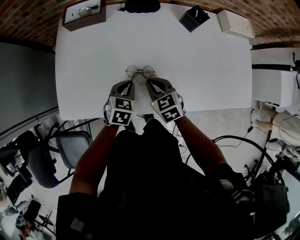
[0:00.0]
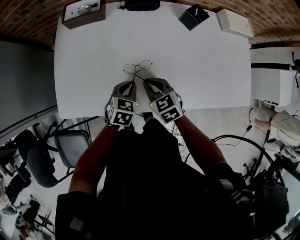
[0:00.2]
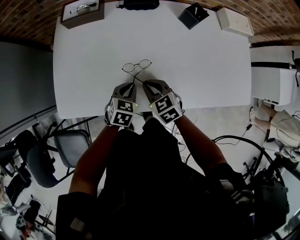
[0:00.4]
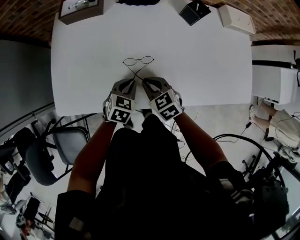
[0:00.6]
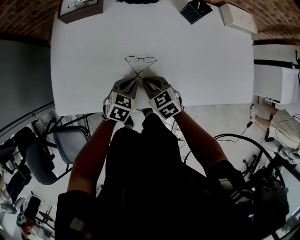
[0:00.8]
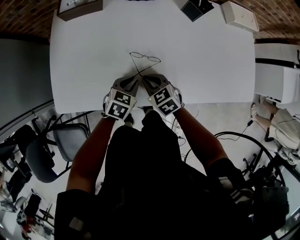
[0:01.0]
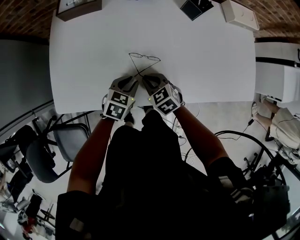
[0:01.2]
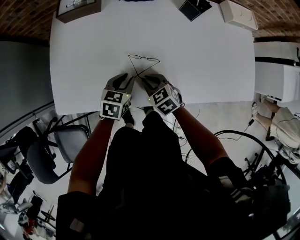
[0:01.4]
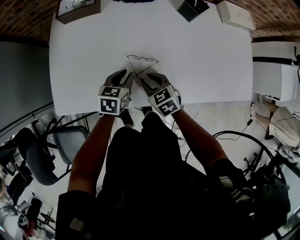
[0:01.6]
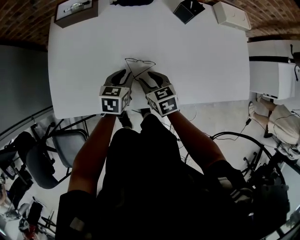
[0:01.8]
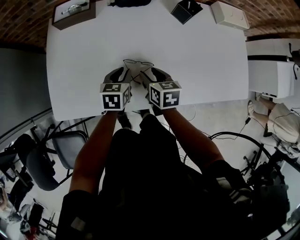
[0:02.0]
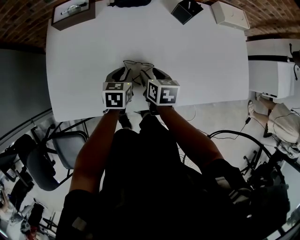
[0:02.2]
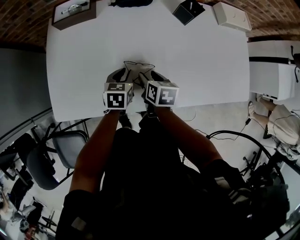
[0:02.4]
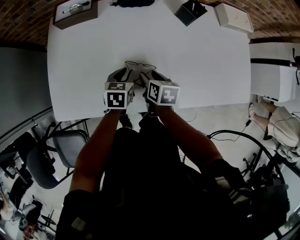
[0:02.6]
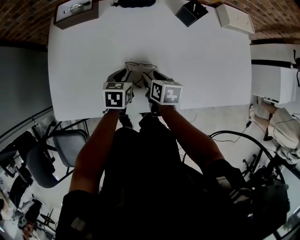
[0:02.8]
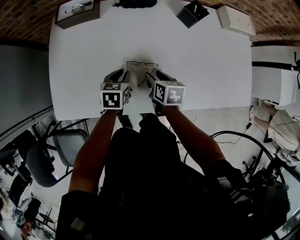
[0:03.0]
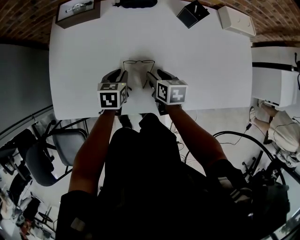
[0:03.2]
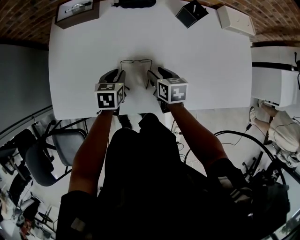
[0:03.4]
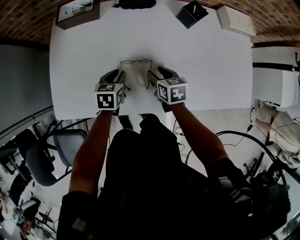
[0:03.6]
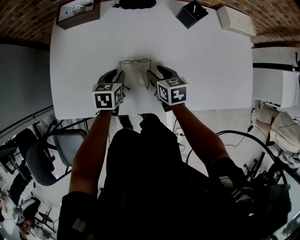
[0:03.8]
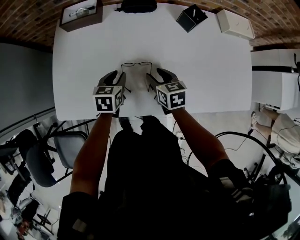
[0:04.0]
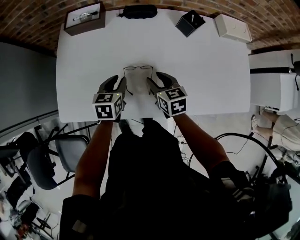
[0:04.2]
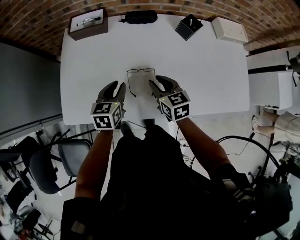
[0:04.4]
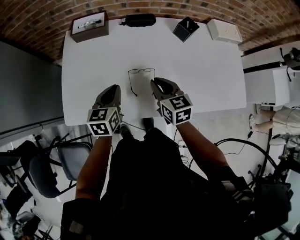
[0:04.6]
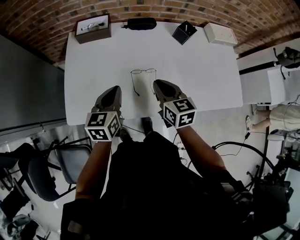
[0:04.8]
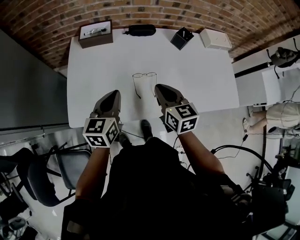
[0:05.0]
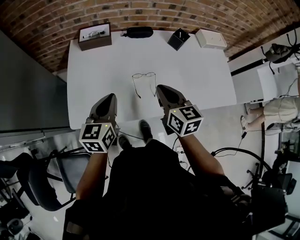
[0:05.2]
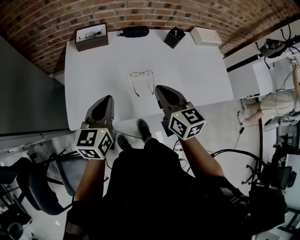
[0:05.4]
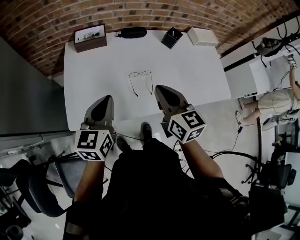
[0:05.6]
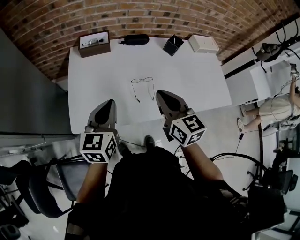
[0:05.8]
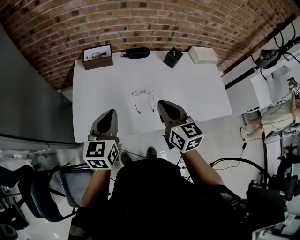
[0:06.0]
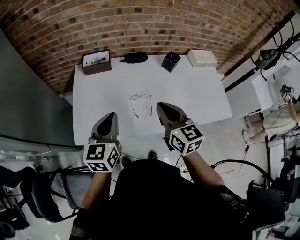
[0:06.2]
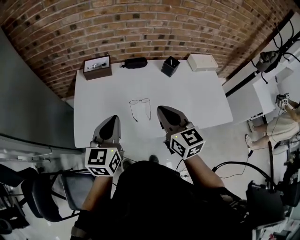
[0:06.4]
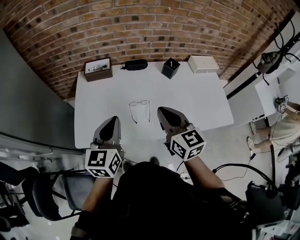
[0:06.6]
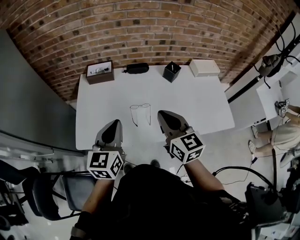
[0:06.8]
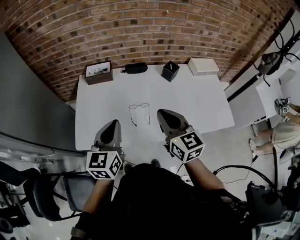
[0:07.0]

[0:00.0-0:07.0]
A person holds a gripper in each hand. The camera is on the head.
0:00.0 to 0:01.4: The right gripper is displaced downward by roughly 5 cm.
0:01.4 to 0:02.8: The grippers both shift forward by approximately 5 cm. The right gripper rolls clockwise, seen from behind, by about 50 degrees, and opens up.
0:02.8 to 0:04.2: The right gripper heads upward, covering approximately 5 cm, and swivels some 30 degrees; the left gripper ends up some 5 cm from where it was.
0:04.2 to 0:05.6: The right gripper goes roughly 25 cm upward and backward, rotates some 20 degrees, and closes up. Meanwhile the left gripper shifts roughly 30 cm upward, backward and to the left, changes its angle by about 30 degrees, and closes its fingers.
0:05.6 to 0:07.0: The grippers both shift to the right and upward by about 10 cm.

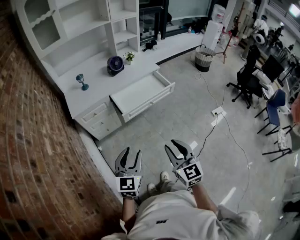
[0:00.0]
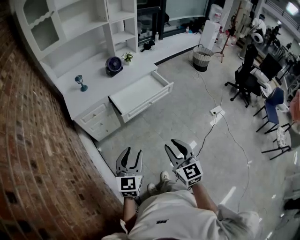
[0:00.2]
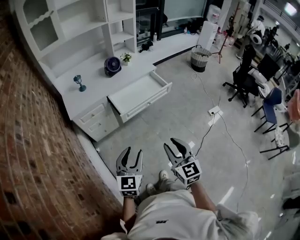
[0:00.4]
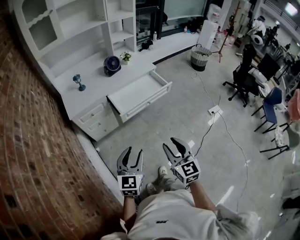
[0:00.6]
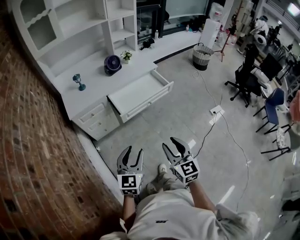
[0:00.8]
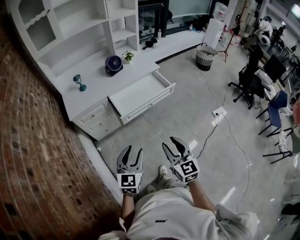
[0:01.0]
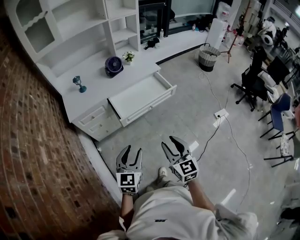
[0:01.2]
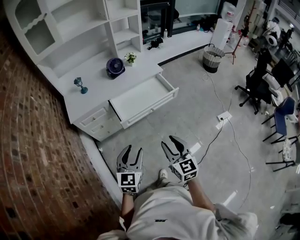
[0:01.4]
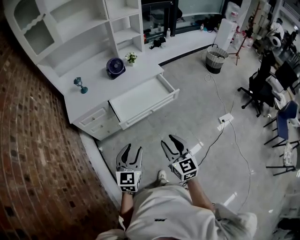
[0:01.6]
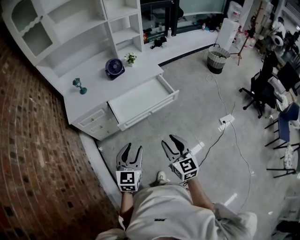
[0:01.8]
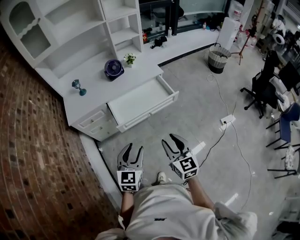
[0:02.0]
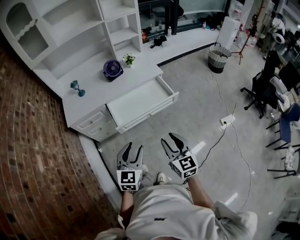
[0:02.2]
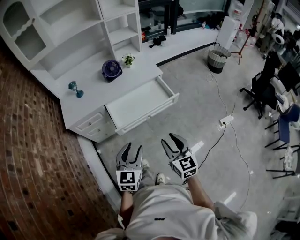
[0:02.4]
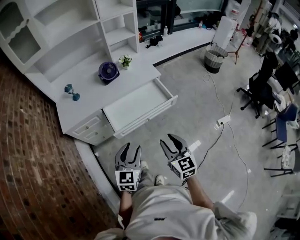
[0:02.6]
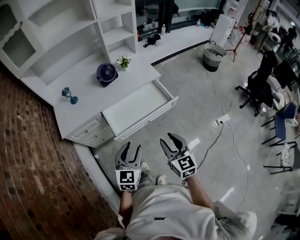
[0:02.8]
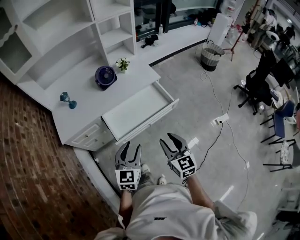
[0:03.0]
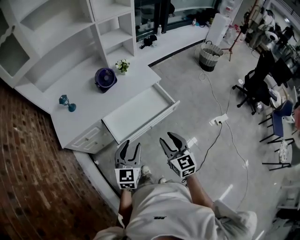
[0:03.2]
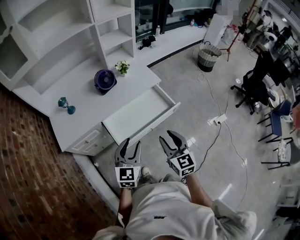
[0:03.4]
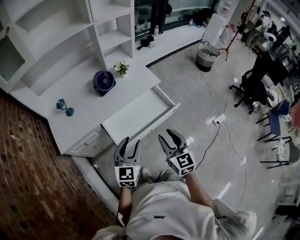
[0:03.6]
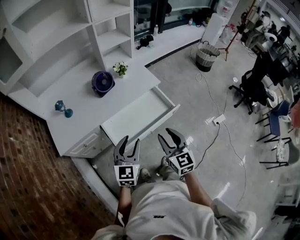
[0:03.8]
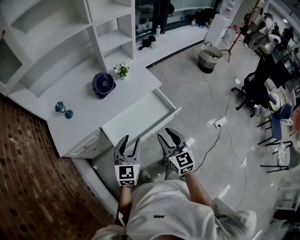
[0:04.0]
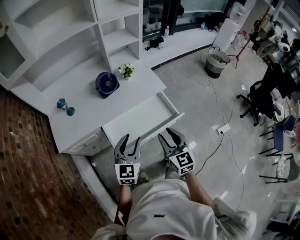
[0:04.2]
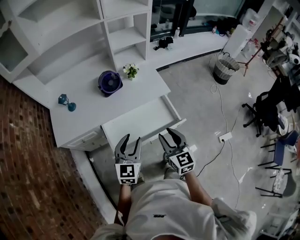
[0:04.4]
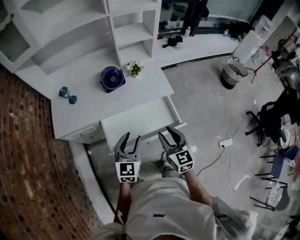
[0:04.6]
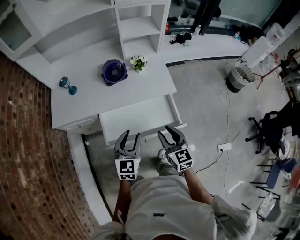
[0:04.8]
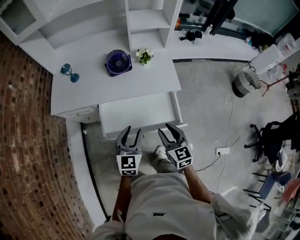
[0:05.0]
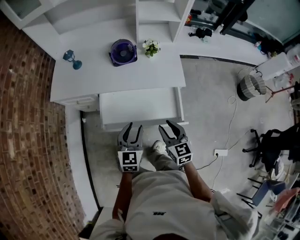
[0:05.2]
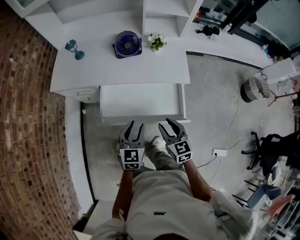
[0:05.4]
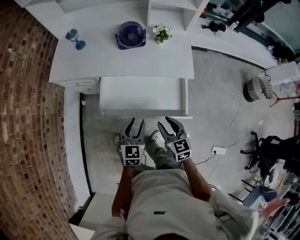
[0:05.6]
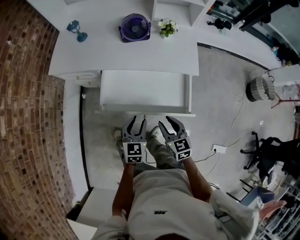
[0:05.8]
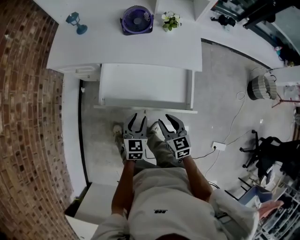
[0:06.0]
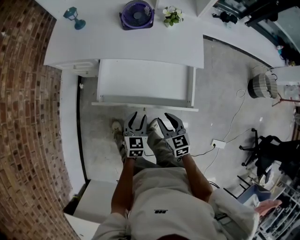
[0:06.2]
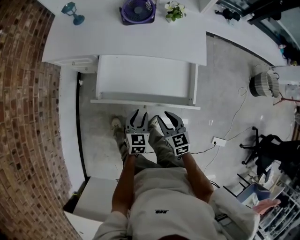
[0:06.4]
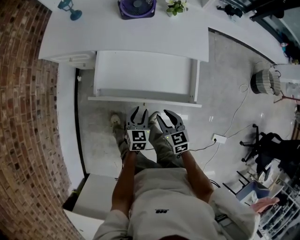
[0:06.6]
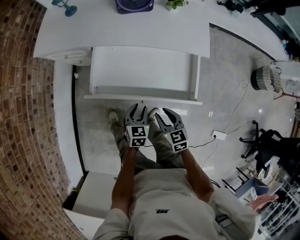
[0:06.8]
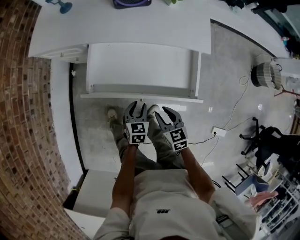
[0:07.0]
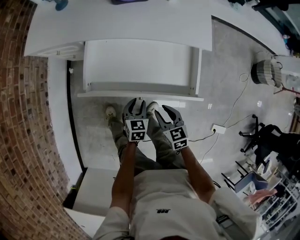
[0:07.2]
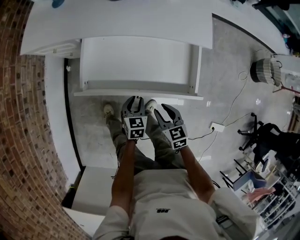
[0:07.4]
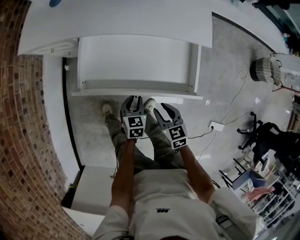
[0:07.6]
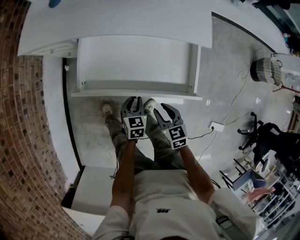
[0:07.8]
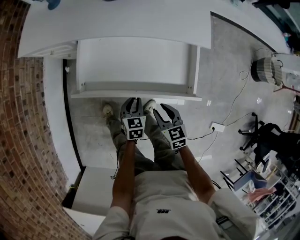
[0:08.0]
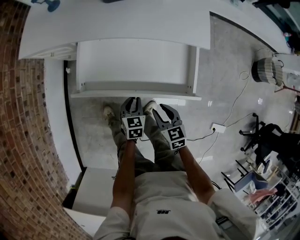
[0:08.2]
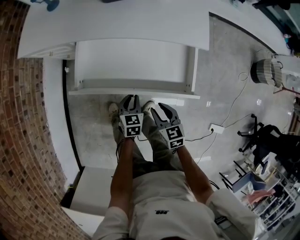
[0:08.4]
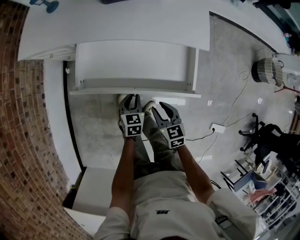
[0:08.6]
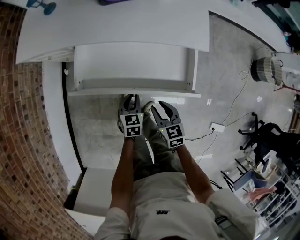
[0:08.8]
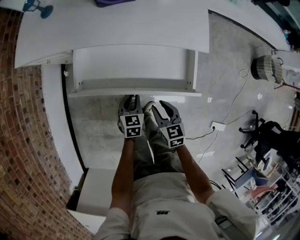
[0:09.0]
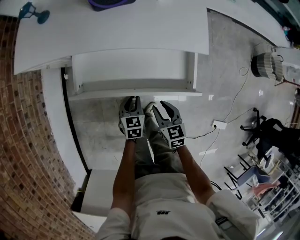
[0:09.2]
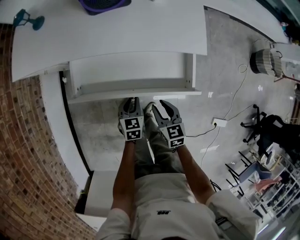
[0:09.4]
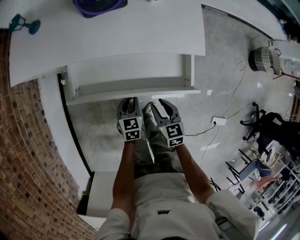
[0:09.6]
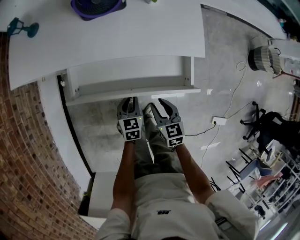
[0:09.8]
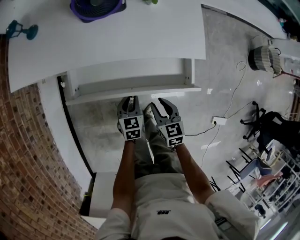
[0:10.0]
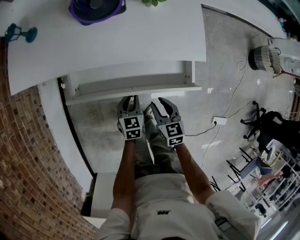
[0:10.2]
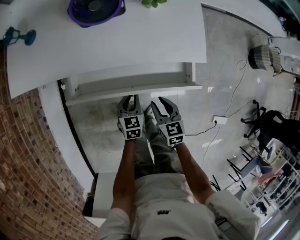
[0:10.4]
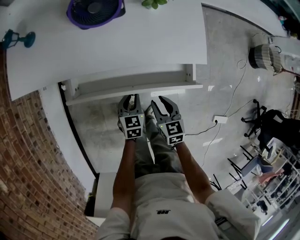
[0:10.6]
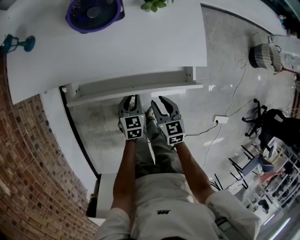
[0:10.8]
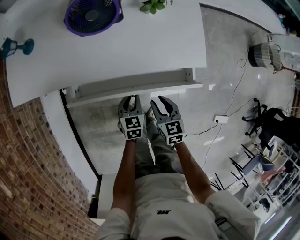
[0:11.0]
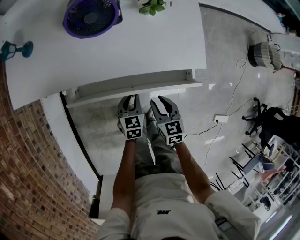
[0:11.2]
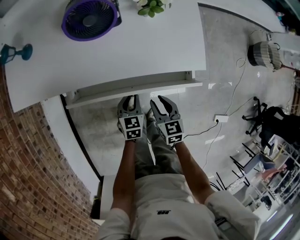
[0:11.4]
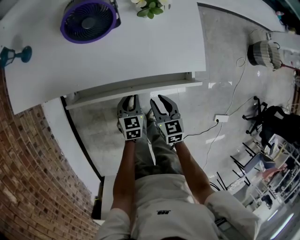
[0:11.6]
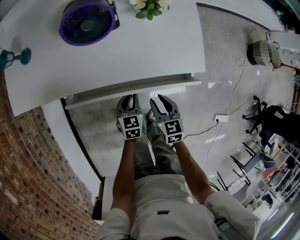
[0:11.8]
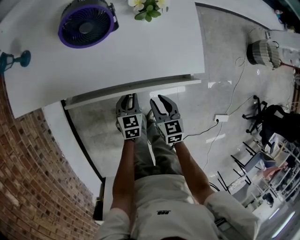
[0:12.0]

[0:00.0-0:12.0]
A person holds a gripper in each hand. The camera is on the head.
0:00.0 to 0:01.6: The two grippers go approximately 15 cm forward and to the right.
0:01.6 to 0:03.0: Both grippers move forward, about 20 cm.
0:03.0 to 0:04.4: The grippers both shift forward by approximately 20 cm.
0:04.4 to 0:06.0: The two grippers go roughly 20 cm downward. The right gripper turns by about 40 degrees; the left gripper changes its angle by roughly 30 degrees.
0:06.0 to 0:07.6: The two grippers go approximately 15 cm downward.
0:07.6 to 0:09.0: Both grippers travel together forward, roughly 5 cm.
0:09.0 to 0:10.4: The grippers both shift forward by approximately 10 cm.
0:10.4 to 0:12.0: Both grippers travel together forward, approximately 5 cm.

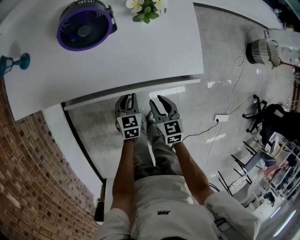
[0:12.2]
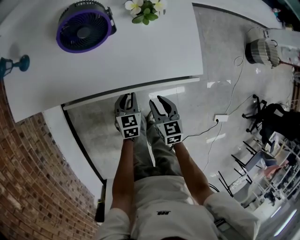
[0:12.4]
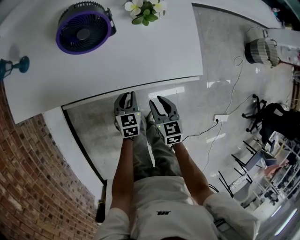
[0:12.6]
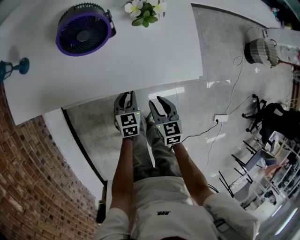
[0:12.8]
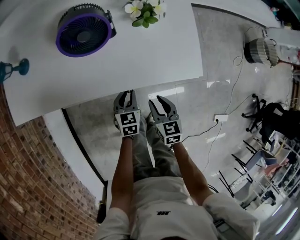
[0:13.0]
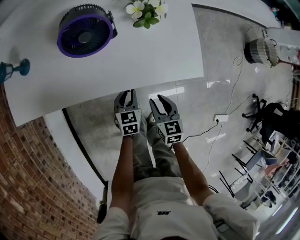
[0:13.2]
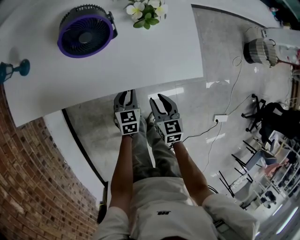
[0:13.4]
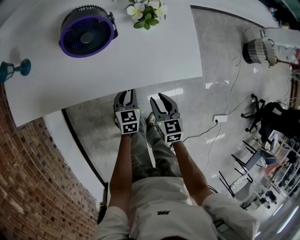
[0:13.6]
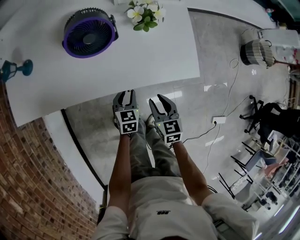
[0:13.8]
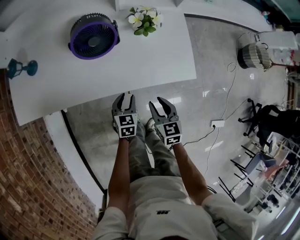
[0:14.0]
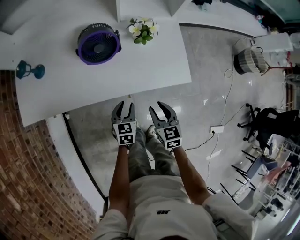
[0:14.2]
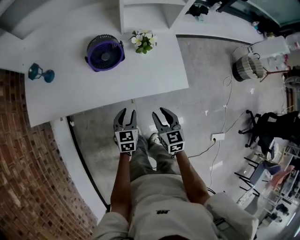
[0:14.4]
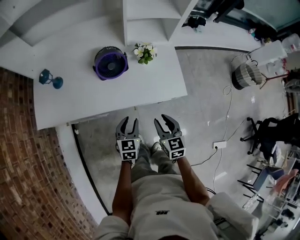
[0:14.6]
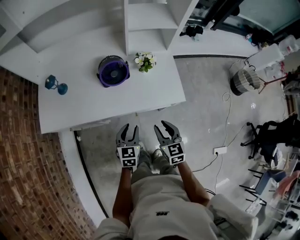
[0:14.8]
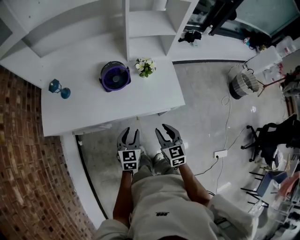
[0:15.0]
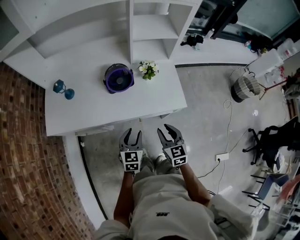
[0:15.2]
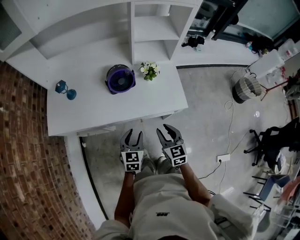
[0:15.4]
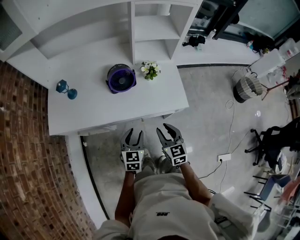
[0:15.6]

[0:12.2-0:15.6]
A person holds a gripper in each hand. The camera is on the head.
0:12.2 to 0:13.8: The grippers move only a little.
0:13.8 to 0:15.6: Both grippers move upward, approximately 20 cm.

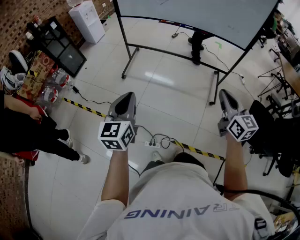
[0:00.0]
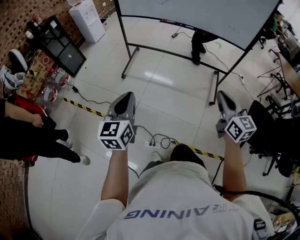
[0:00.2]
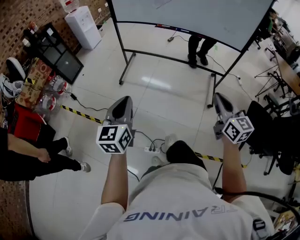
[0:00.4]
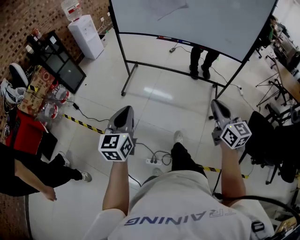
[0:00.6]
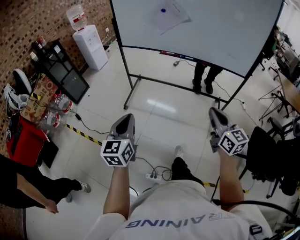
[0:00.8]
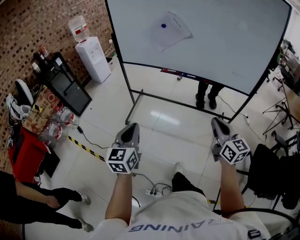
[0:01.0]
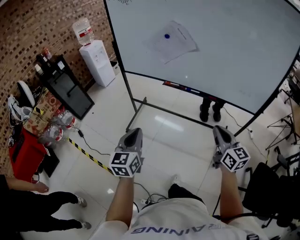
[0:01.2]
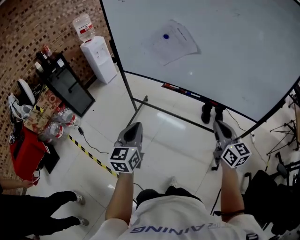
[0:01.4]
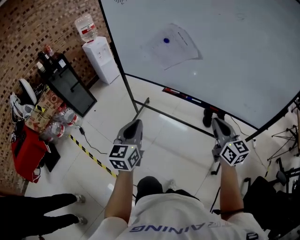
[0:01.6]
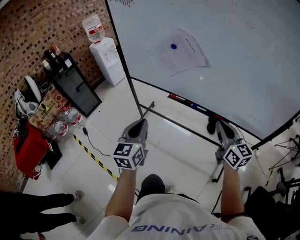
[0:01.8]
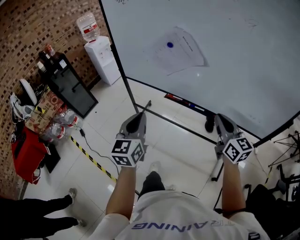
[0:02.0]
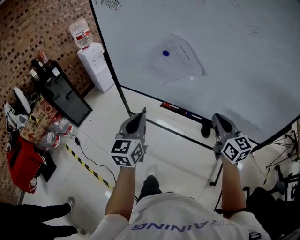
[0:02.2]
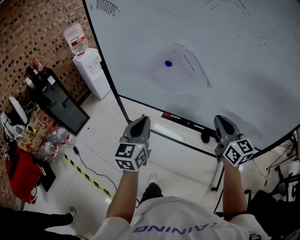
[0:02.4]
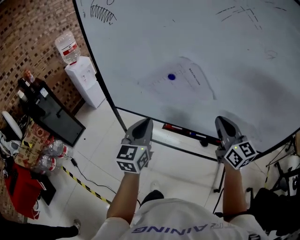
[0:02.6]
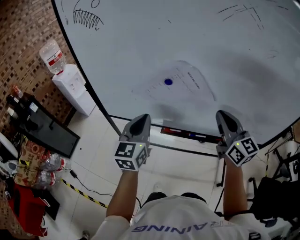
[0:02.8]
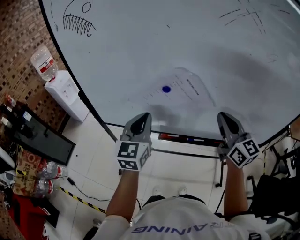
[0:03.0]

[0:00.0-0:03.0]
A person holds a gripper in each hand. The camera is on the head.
0:00.0 to 0:01.6: The two grippers travel together, forward, approximately 40 cm.
0:01.6 to 0:03.0: The right gripper travels forward and upward by roughly 25 cm; the left gripper travels forward by roughly 35 cm, and swivels some 20 degrees.
